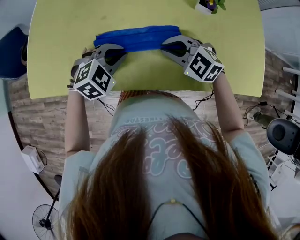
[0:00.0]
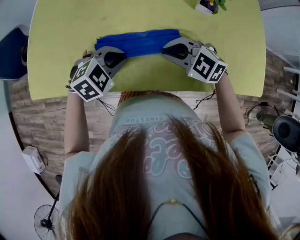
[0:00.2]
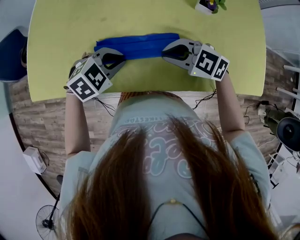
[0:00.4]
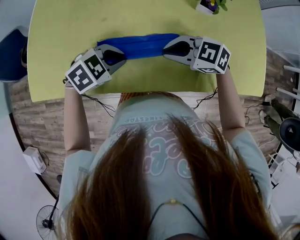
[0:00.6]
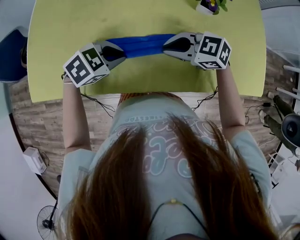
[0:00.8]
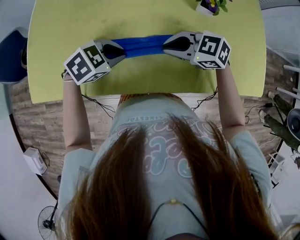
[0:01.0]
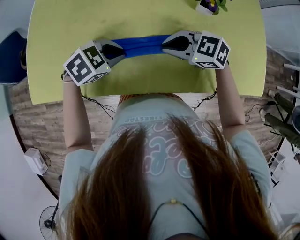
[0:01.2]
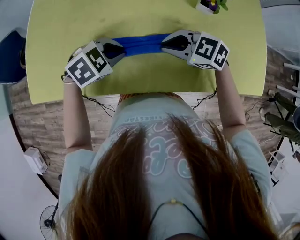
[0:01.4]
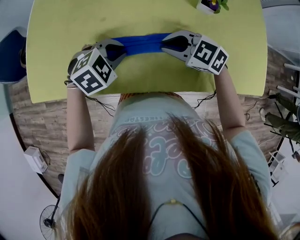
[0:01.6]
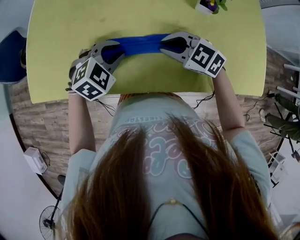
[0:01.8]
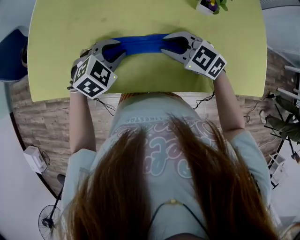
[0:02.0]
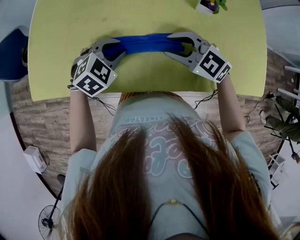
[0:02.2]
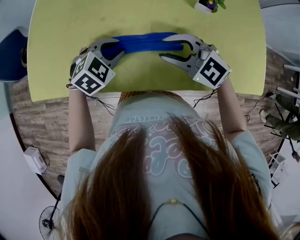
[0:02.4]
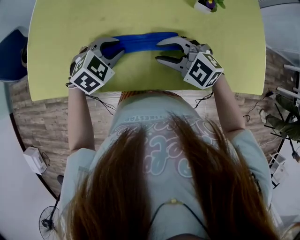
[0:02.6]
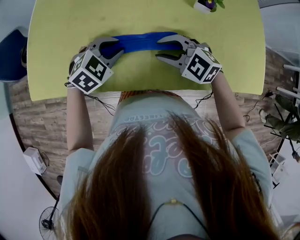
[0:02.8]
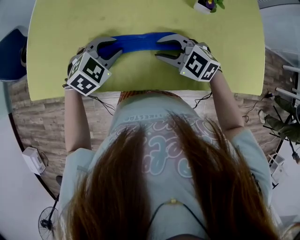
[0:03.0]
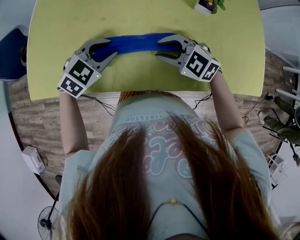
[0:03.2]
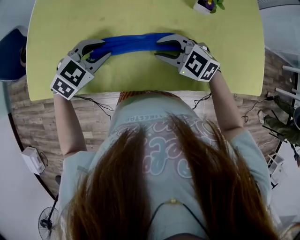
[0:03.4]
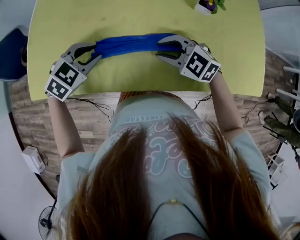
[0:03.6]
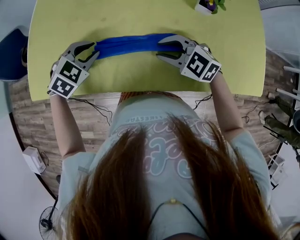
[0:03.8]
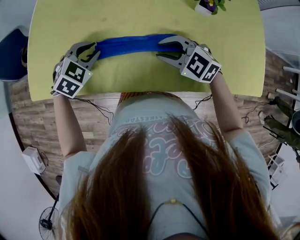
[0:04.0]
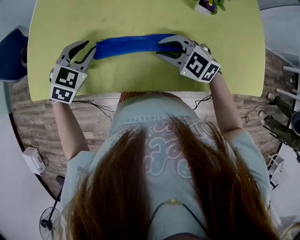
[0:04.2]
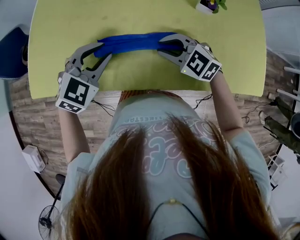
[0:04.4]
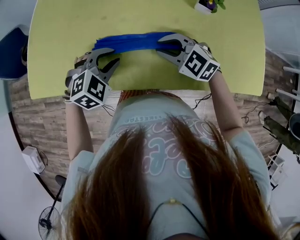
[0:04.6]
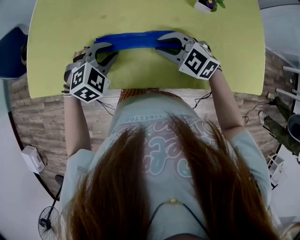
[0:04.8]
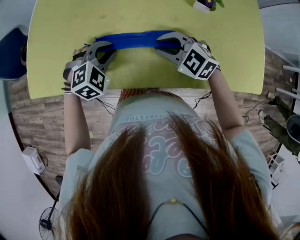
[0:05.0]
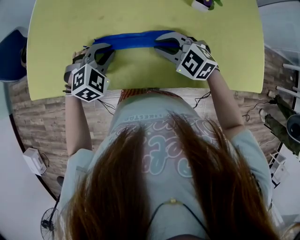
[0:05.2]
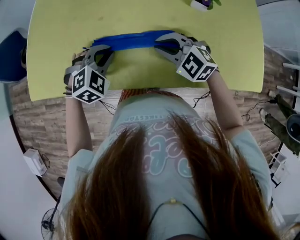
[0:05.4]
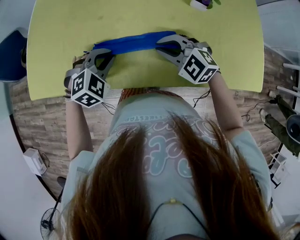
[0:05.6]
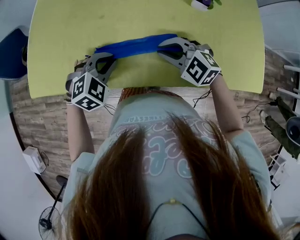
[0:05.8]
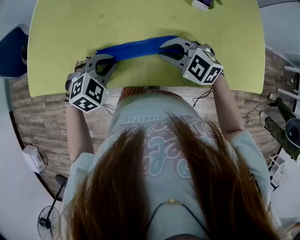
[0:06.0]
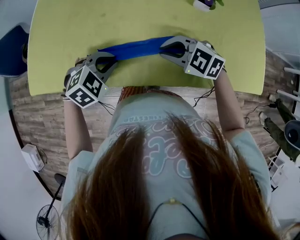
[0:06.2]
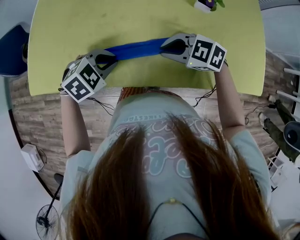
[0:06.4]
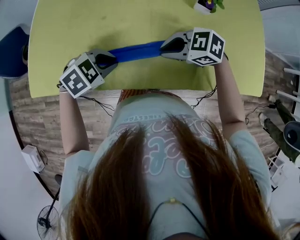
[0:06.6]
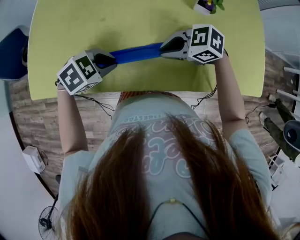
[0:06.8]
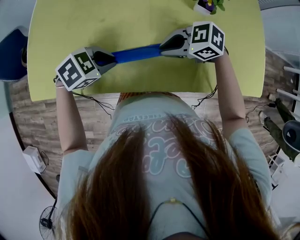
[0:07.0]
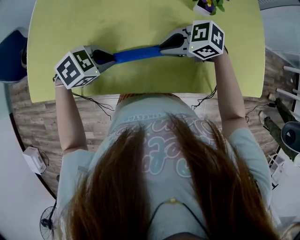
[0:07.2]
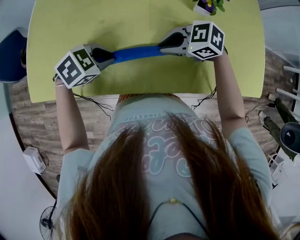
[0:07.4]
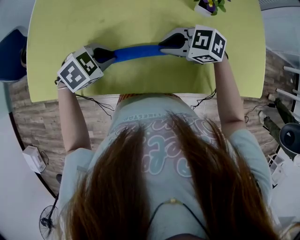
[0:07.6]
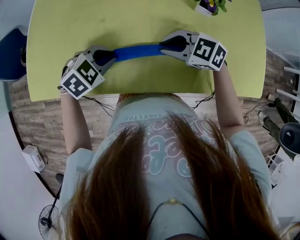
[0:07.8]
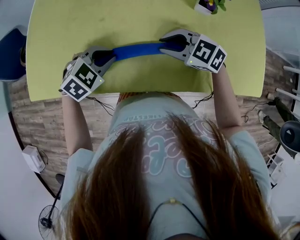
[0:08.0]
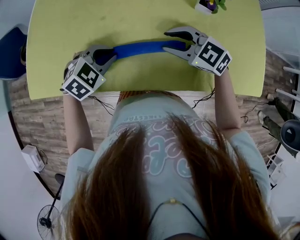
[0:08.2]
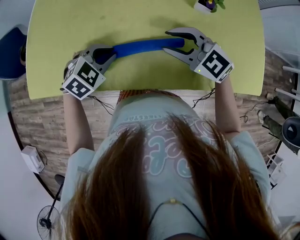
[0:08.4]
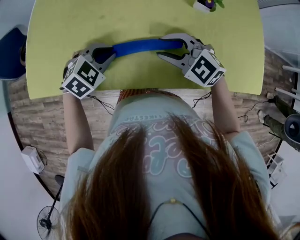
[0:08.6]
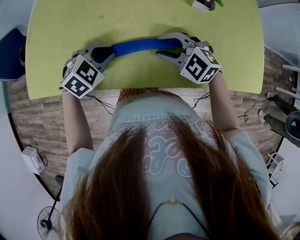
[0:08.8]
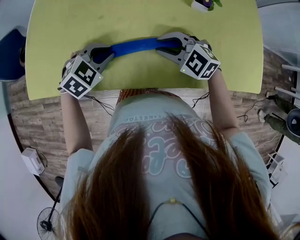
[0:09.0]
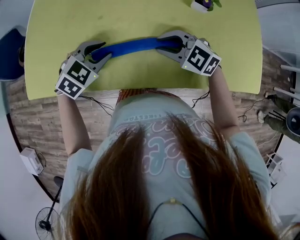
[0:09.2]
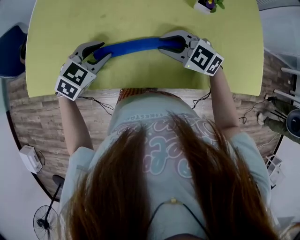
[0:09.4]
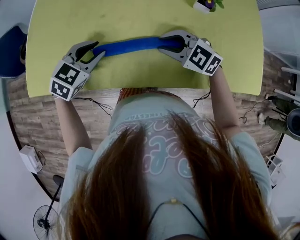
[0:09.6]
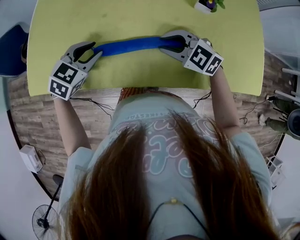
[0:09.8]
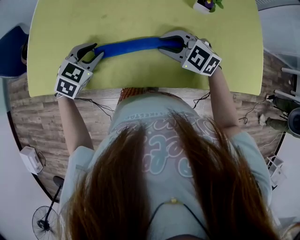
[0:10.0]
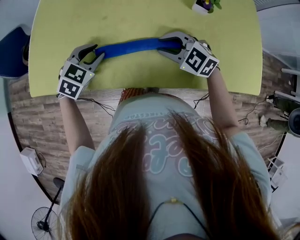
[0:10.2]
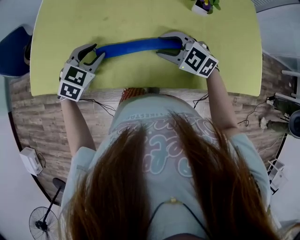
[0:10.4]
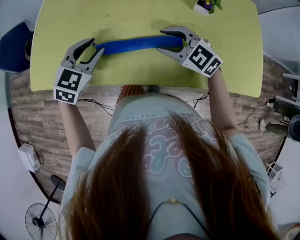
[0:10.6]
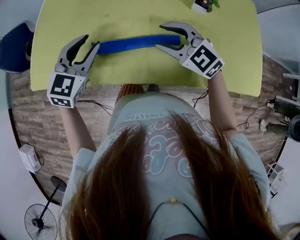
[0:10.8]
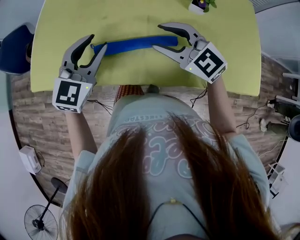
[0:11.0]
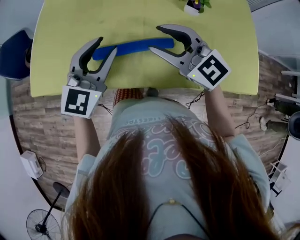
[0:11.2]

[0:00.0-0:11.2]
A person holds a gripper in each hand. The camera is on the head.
0:04.8 to 0:06.4: The grippers stay close to where they were, moving slightly.
0:06.4 to 0:08.0: The grippers move only a little.
0:08.0 to 0:09.6: The left gripper opens up.
0:09.6 to 0:11.2: The right gripper moves upward, about 15 cm, angles its fingers upward, by some 30 degrees, and opens up, while the left gripper travels upward and to the right by approximately 15 cm, and tilts its fingers roughly 30 degrees upward.

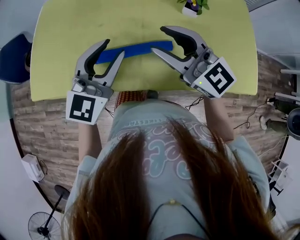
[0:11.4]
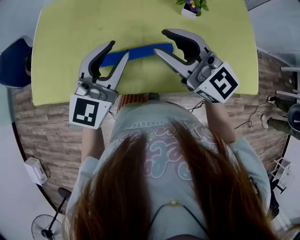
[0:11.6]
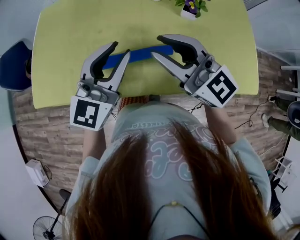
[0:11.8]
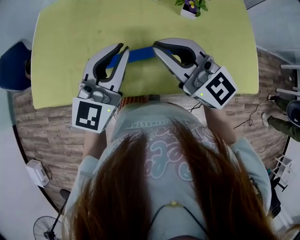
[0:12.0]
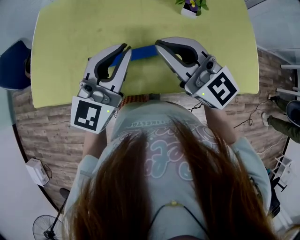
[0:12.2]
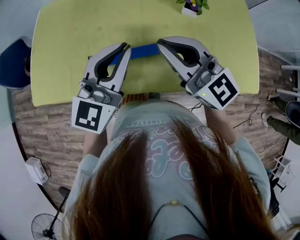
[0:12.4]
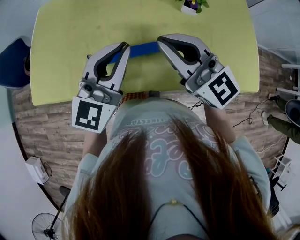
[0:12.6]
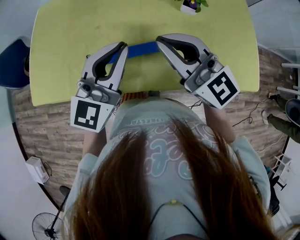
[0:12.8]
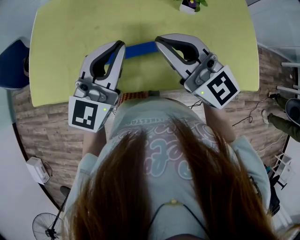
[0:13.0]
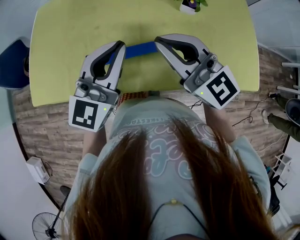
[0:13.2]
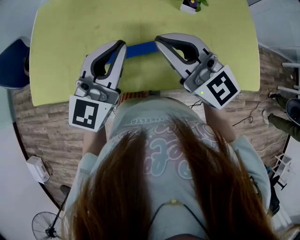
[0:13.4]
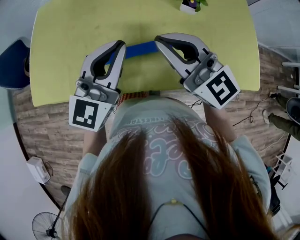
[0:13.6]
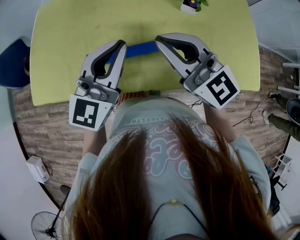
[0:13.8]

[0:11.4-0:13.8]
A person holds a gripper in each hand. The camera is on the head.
0:11.4 to 0:12.6: The left gripper closes up. The right gripper closes its fingers.
0:12.6 to 0:13.8: Neither gripper changes place.

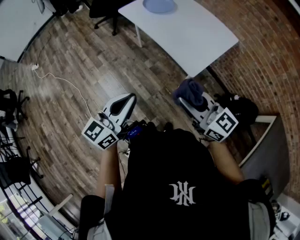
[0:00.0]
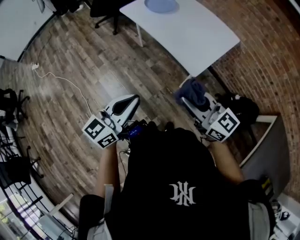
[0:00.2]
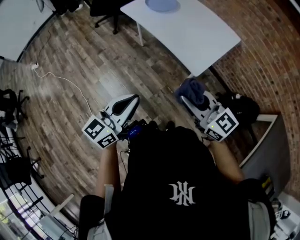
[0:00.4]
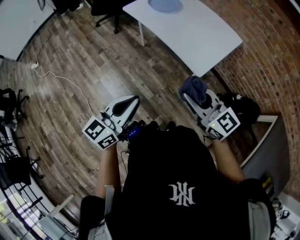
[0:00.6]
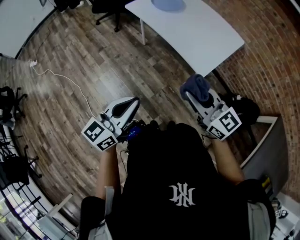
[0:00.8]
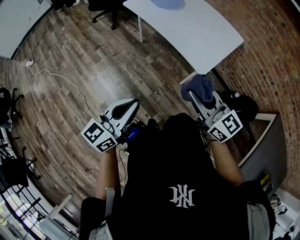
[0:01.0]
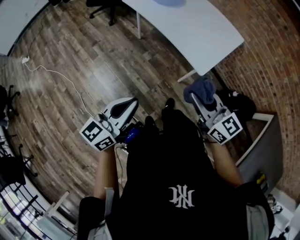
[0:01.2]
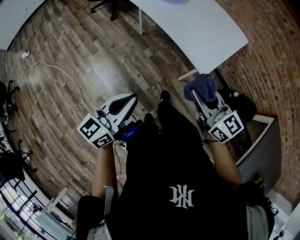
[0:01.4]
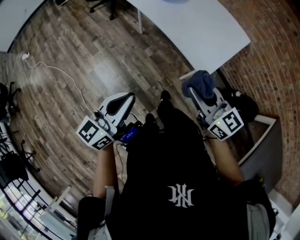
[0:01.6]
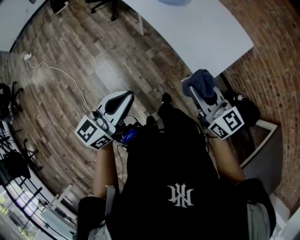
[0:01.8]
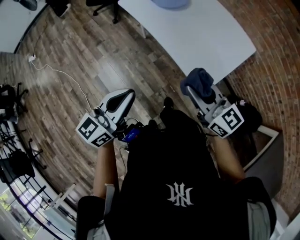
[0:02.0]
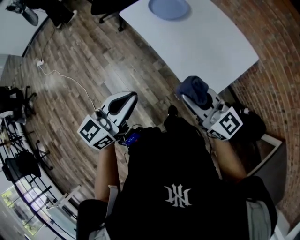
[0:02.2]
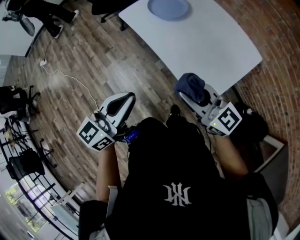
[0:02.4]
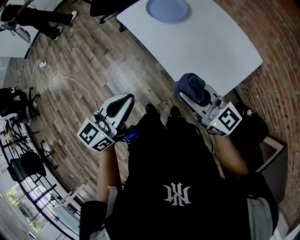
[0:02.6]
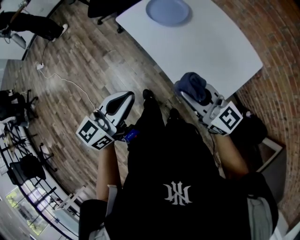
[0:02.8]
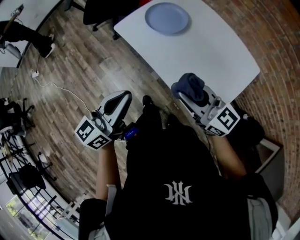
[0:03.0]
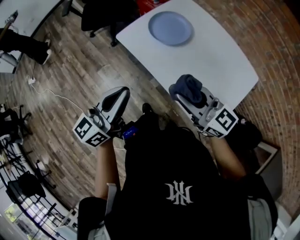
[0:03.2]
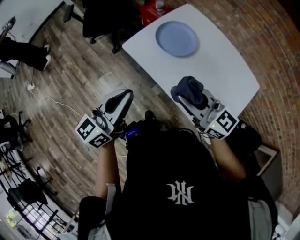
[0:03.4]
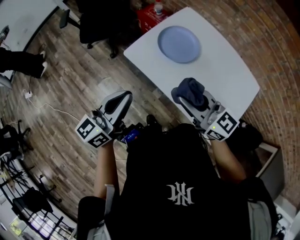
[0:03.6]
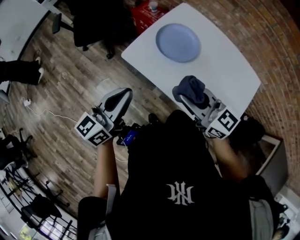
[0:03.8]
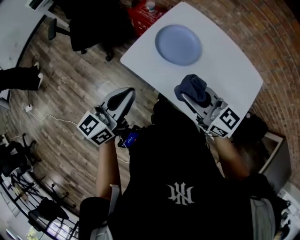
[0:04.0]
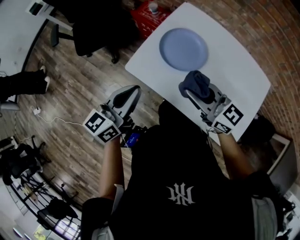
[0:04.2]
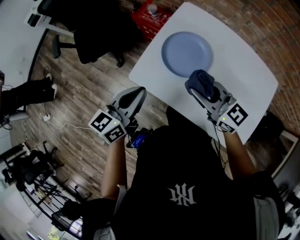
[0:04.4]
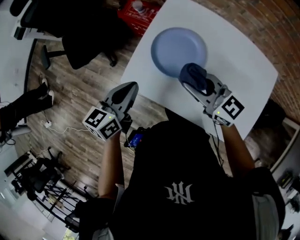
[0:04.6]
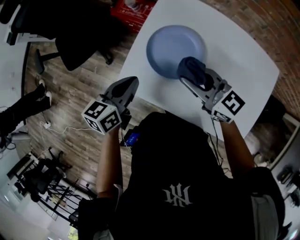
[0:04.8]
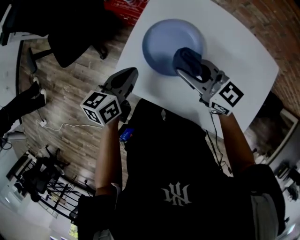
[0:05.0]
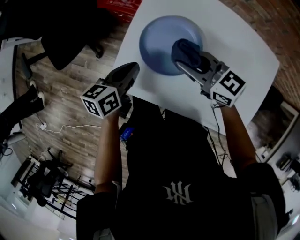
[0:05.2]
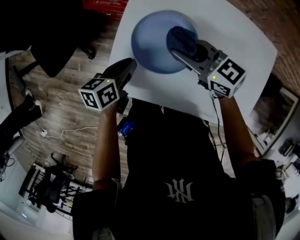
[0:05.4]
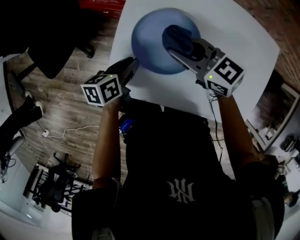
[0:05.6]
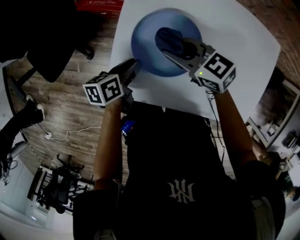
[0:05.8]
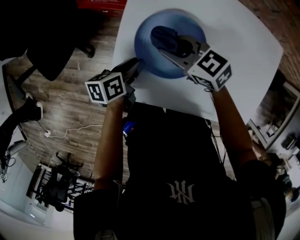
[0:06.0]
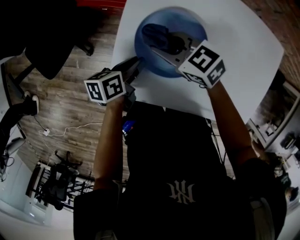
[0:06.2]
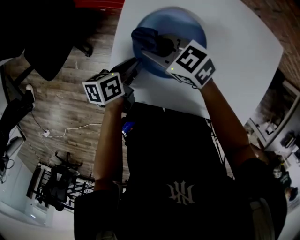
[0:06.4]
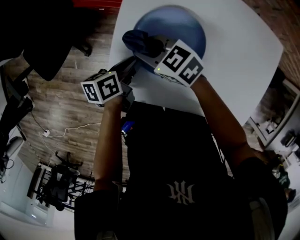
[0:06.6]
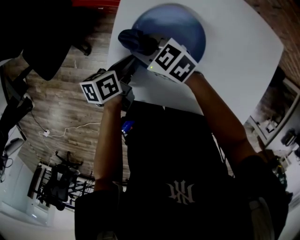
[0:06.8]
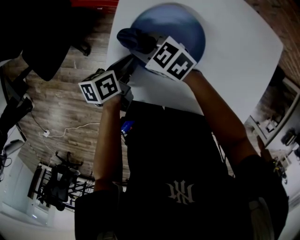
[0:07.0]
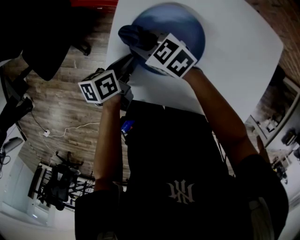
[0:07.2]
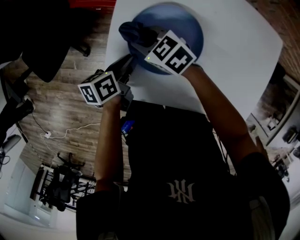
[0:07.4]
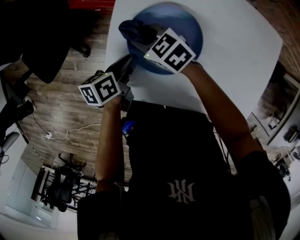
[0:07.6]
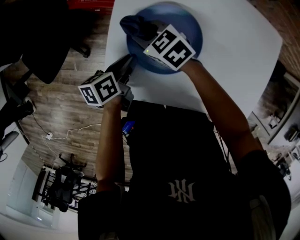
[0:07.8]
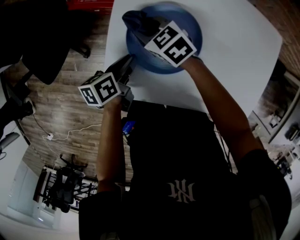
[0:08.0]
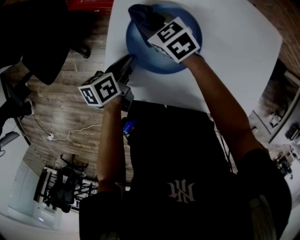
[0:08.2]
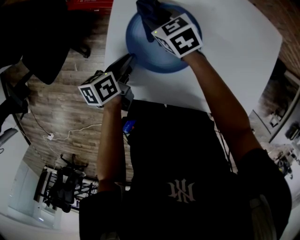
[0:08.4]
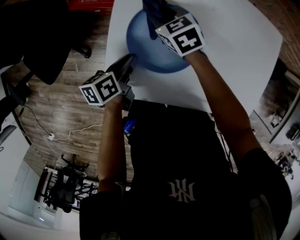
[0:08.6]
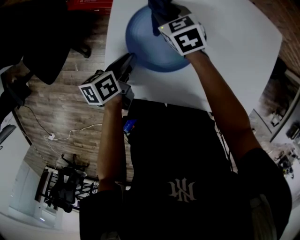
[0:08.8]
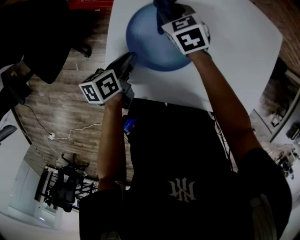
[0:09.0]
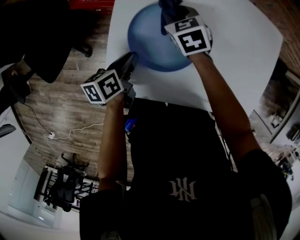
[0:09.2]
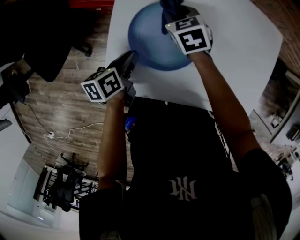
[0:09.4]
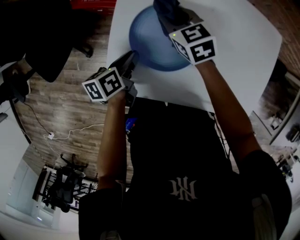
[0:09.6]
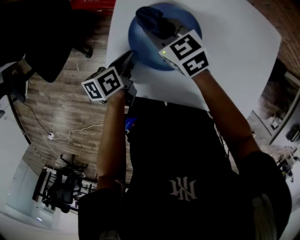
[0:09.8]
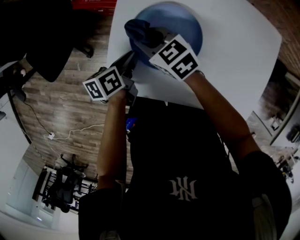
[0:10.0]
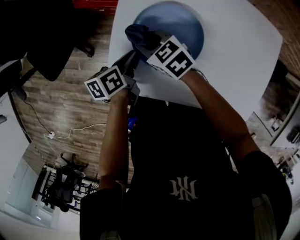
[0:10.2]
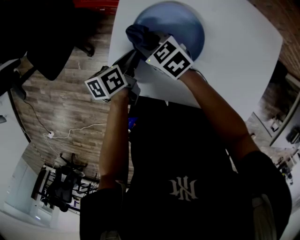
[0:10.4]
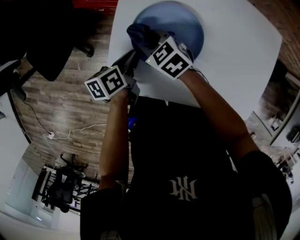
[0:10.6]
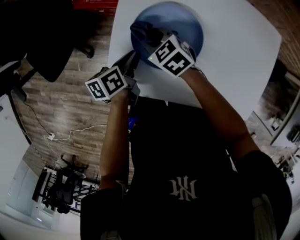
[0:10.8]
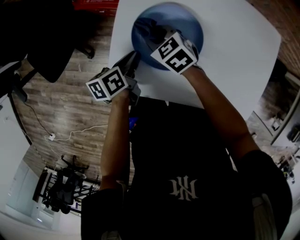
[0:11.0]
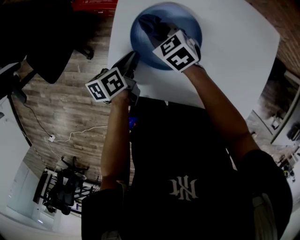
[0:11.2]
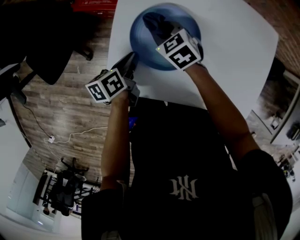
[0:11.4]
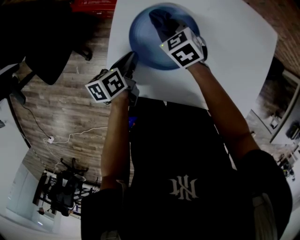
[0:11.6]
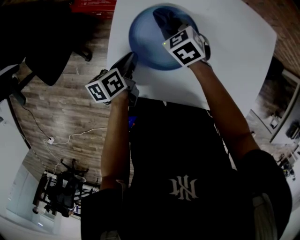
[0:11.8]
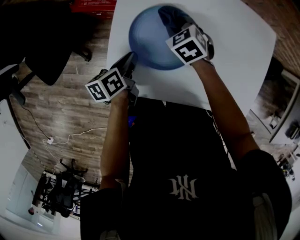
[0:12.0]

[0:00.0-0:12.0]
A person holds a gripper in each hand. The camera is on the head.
0:00.0 to 0:01.6: The left gripper travels forward by about 5 cm. Meanwhile the right gripper goes roughly 10 cm forward.
0:01.6 to 0:03.0: The two grippers go some 25 cm forward.
0:03.0 to 0:04.4: Both grippers move forward, some 30 cm. The left gripper changes its angle by approximately 20 degrees.
0:04.4 to 0:06.0: The right gripper shifts approximately 25 cm forward and downward, and swivels approximately 20 degrees, while the left gripper moves downward and forward, about 30 cm, swivels about 40 degrees, and opens its fingers.
0:06.0 to 0:07.6: The right gripper moves some 10 cm.
0:07.6 to 0:09.0: The right gripper moves to the right and forward, about 15 cm, and turns by some 30 degrees.
0:09.0 to 0:10.4: The right gripper goes about 15 cm backward and to the left, and turns by some 30 degrees.
0:10.4 to 0:12.0: The right gripper goes some 15 cm to the right and forward, and swivels about 30 degrees.
